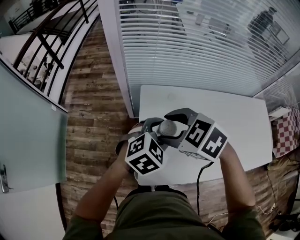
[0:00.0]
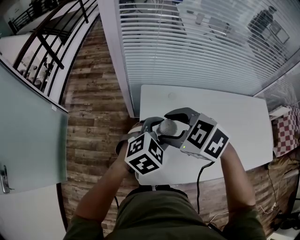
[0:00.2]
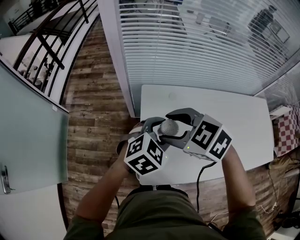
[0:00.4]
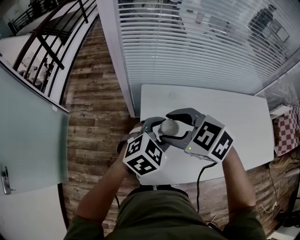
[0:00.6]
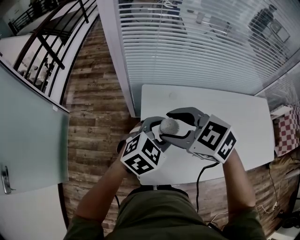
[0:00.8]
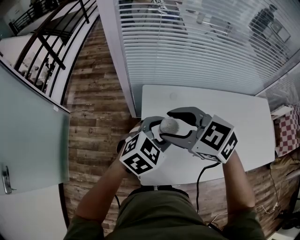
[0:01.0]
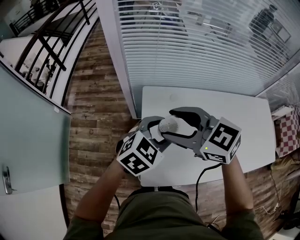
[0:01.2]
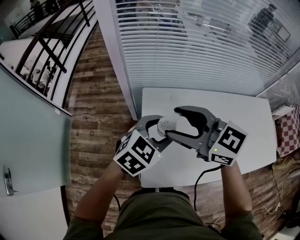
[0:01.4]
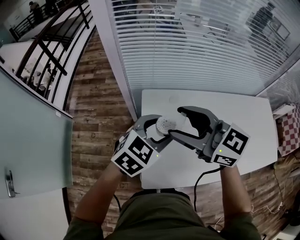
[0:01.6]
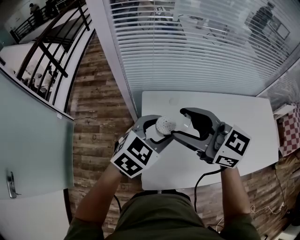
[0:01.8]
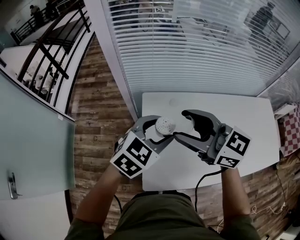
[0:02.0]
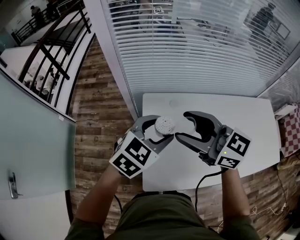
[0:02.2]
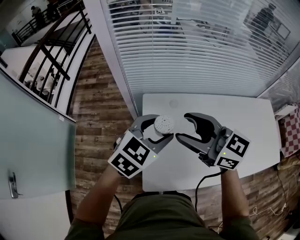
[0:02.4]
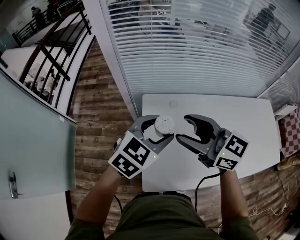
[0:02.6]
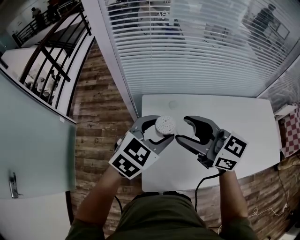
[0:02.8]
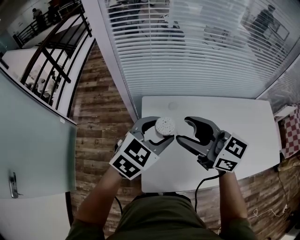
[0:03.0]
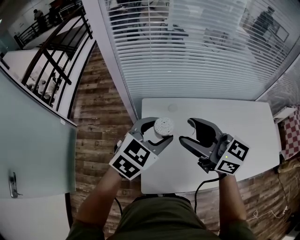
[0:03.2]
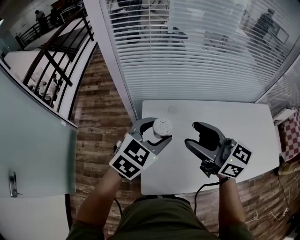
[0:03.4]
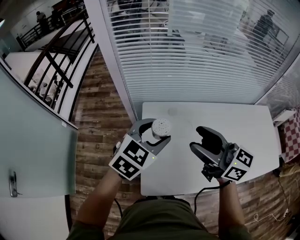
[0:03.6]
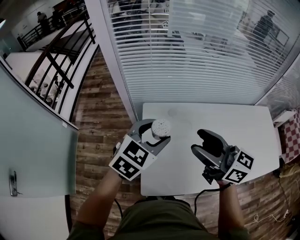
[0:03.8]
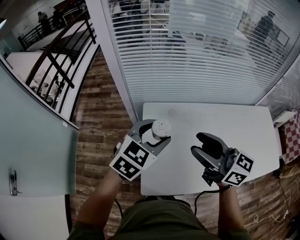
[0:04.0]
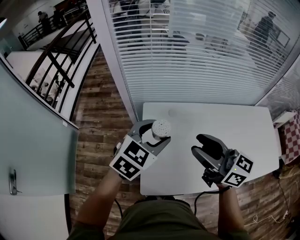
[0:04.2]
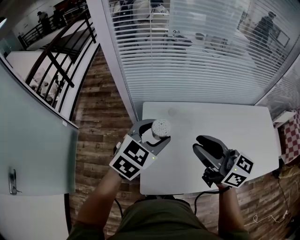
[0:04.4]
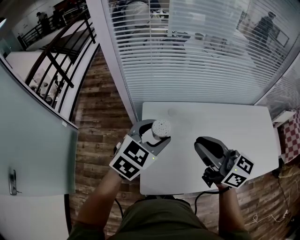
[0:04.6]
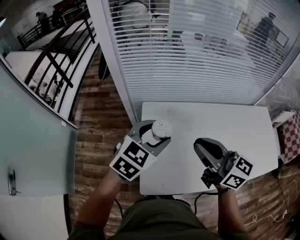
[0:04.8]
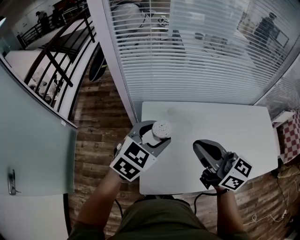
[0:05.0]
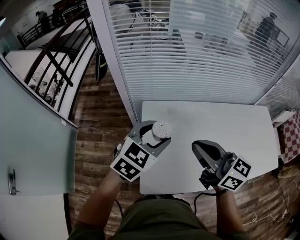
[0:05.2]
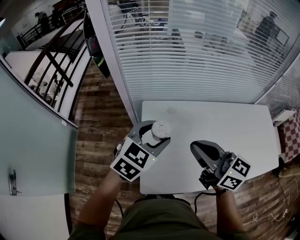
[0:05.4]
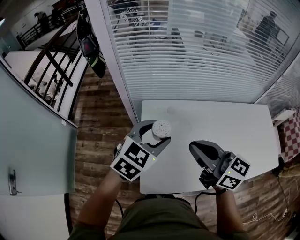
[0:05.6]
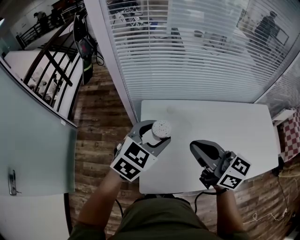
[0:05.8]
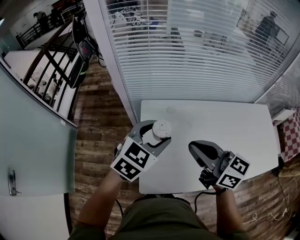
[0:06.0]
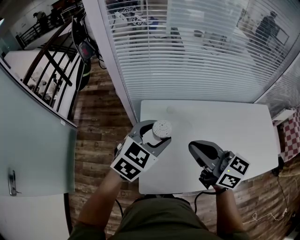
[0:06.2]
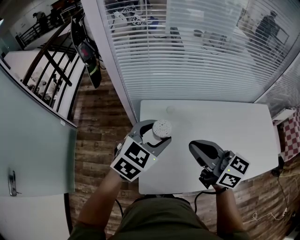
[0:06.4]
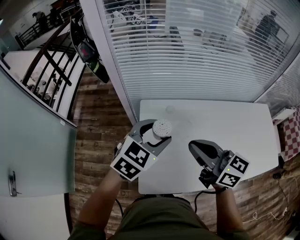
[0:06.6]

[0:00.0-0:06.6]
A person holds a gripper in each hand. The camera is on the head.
0.0 to 1.6 s: The left gripper ends up roughly 5 cm from where it was. Meanwhile the right gripper shifts about 10 cm upward, and angles its fingers upward, by approximately 40 degrees.
1.6 to 3.2 s: The right gripper heads to the right, covering roughly 5 cm.
3.2 to 5.0 s: The right gripper shifts by roughly 5 cm, and closes.
5.0 to 6.6 s: The grippers move only a little.

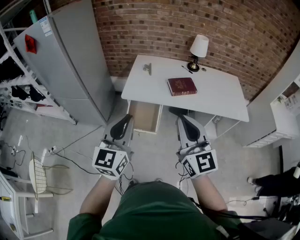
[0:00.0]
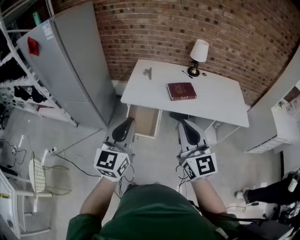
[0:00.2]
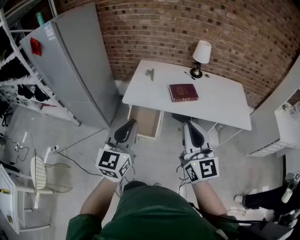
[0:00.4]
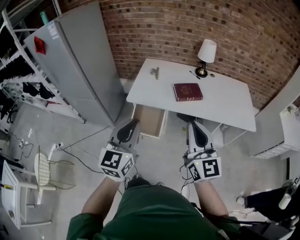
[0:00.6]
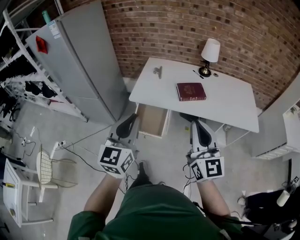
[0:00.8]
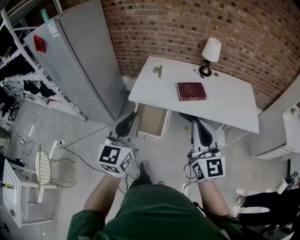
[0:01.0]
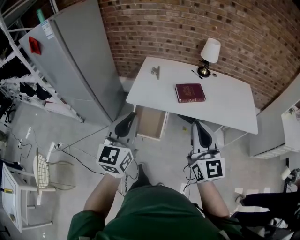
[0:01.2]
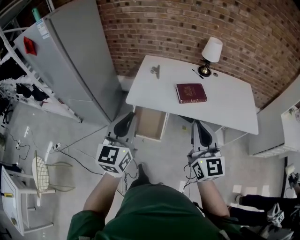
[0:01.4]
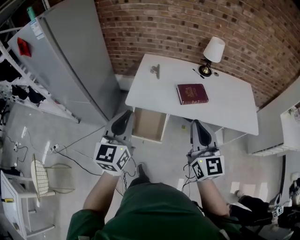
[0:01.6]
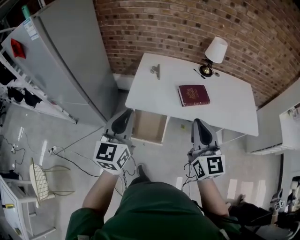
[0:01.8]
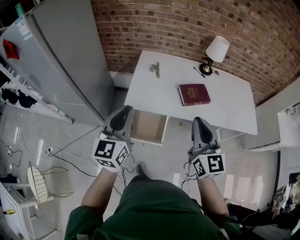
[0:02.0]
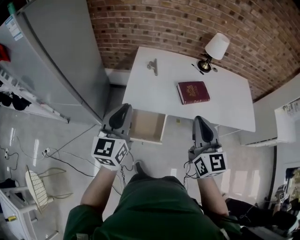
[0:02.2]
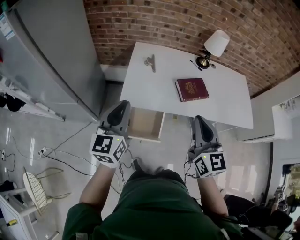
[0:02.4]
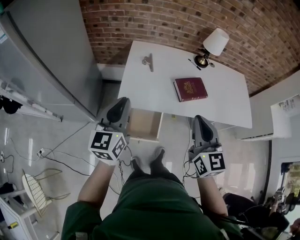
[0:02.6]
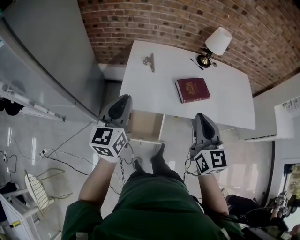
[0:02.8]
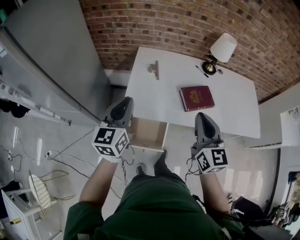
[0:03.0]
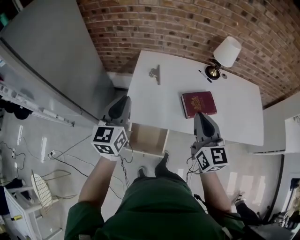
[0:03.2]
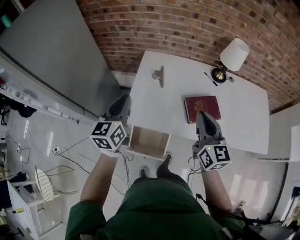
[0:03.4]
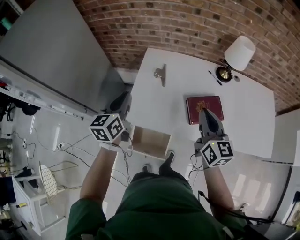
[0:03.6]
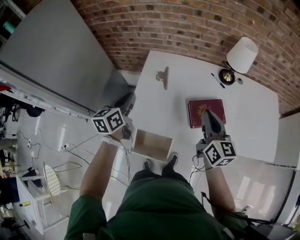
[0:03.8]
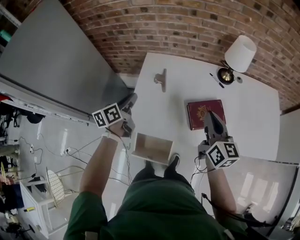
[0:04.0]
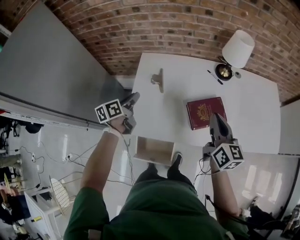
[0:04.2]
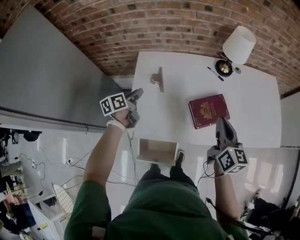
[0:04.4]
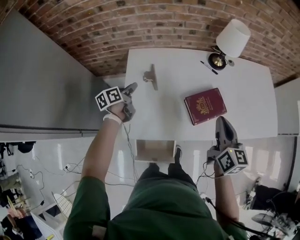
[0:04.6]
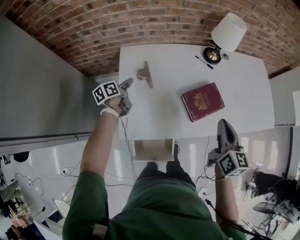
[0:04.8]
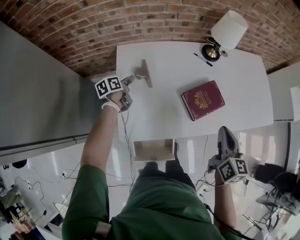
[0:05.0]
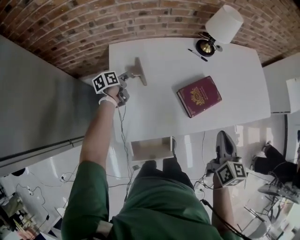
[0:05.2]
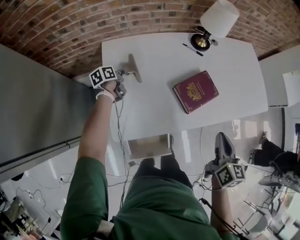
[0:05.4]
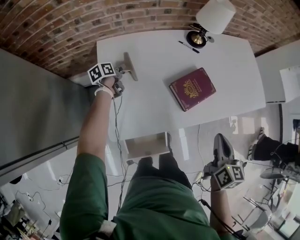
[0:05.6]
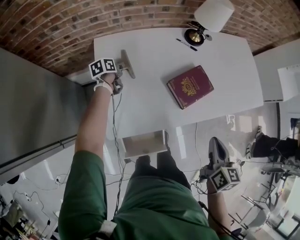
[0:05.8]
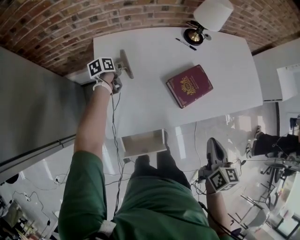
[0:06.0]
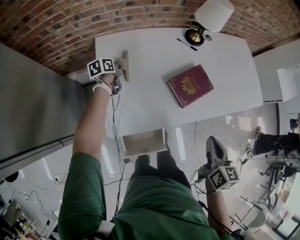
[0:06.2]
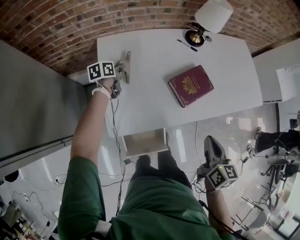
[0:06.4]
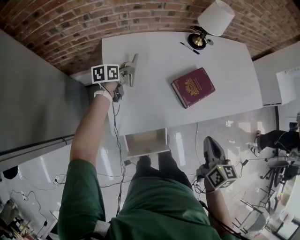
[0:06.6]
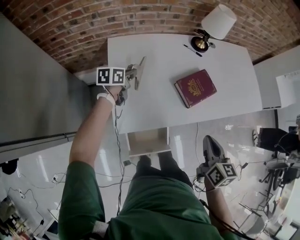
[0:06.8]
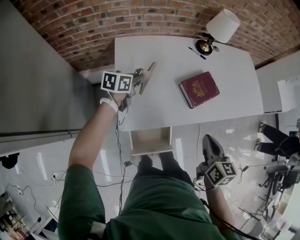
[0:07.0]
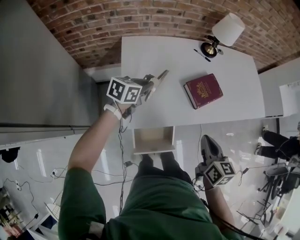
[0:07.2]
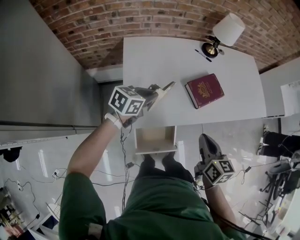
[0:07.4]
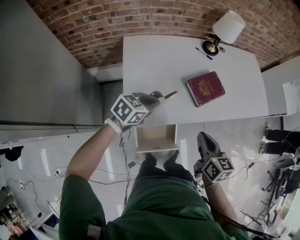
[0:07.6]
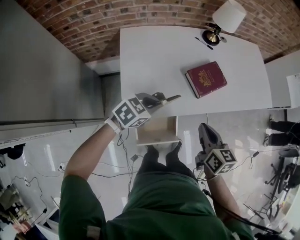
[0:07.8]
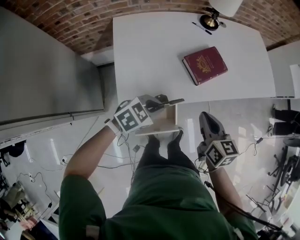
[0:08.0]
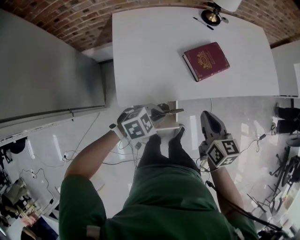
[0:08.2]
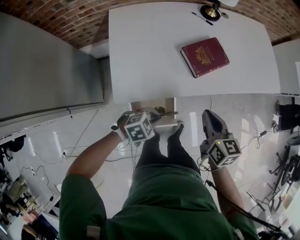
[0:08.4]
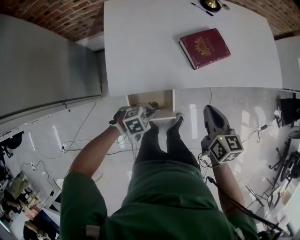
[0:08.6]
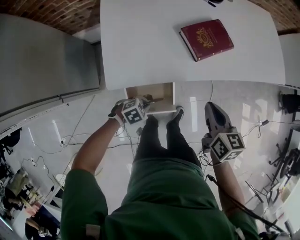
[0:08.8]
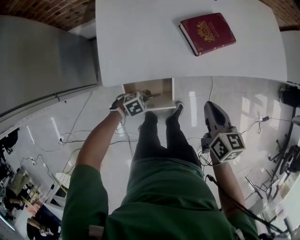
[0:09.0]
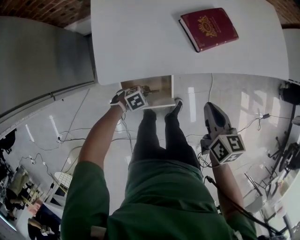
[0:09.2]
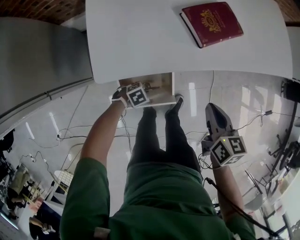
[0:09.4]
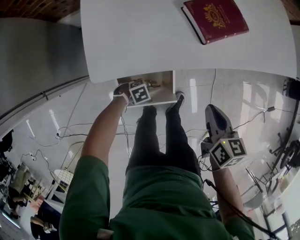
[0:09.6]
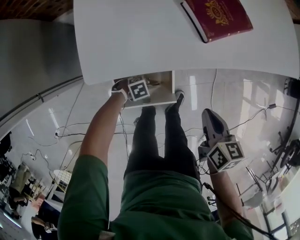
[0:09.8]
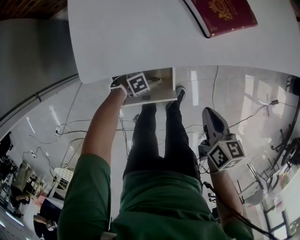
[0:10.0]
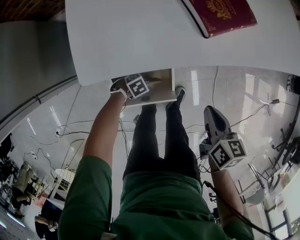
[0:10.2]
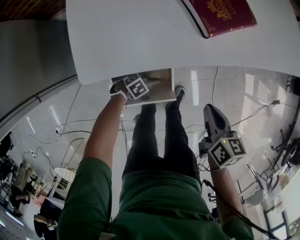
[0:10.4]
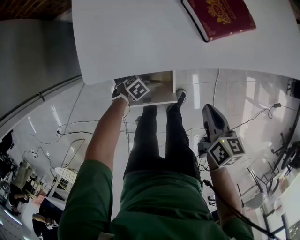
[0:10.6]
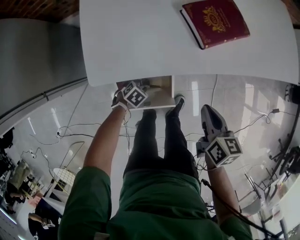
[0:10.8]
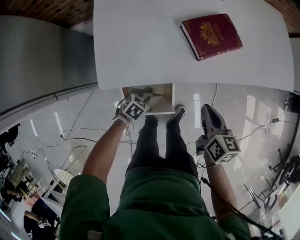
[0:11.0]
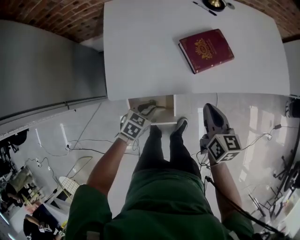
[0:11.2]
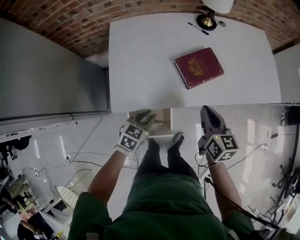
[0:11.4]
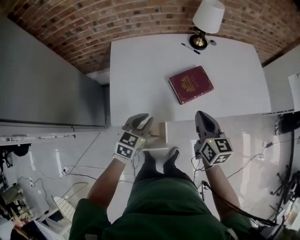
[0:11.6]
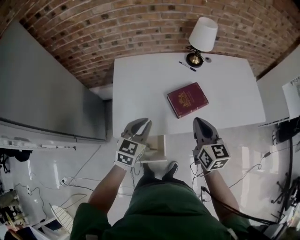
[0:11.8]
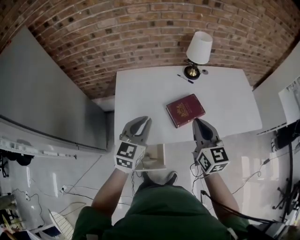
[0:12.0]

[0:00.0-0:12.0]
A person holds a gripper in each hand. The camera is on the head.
0.0 to 1.6 s: Both grippers travel together forward, some 15 cm.
1.6 to 3.0 s: The two grippers go some 20 cm forward.
3.0 to 4.4 s: The left gripper goes some 35 cm forward and downward, and rotates some 50 degrees; the right gripper travels forward, to the right and downward by some 25 cm, and turns by approximately 30 degrees.
4.4 to 6.0 s: The right gripper is displaced backward and downward by some 15 cm, and rotates approximately 30 degrees, while the left gripper goes approximately 20 cm downward and forward, and swivels some 20 degrees.
6.0 to 7.6 s: The left gripper goes some 30 cm backward, upward and to the right, and twists about 50 degrees clockwise, seen from behind; the right gripper travels to the left and backward by about 10 cm.
7.6 to 9.0 s: The left gripper shifts roughly 35 cm downward, backward and to the right, and changes its angle by some 40 degrees; the right gripper heads downward and to the right, covering roughly 15 cm.
9.0 to 10.4 s: Both grippers travel together downward, roughly 15 cm.
10.4 to 12.0 s: The left gripper travels upward by some 60 cm, and tips its fingers upward by approximately 60 degrees; the right gripper is displaced upward by about 35 cm, and points its fingers some 30 degrees further upward.

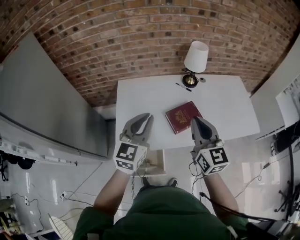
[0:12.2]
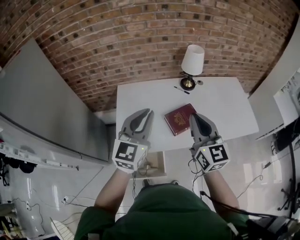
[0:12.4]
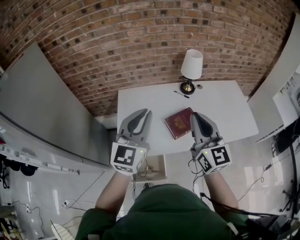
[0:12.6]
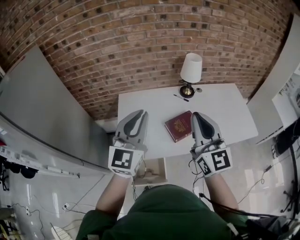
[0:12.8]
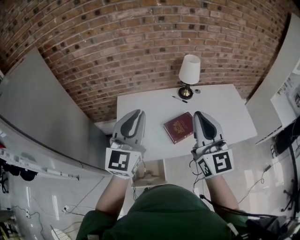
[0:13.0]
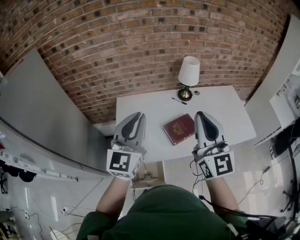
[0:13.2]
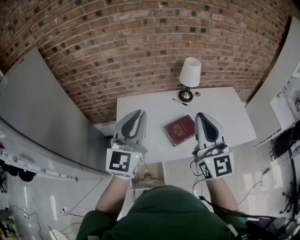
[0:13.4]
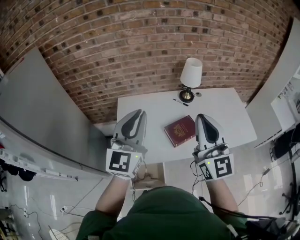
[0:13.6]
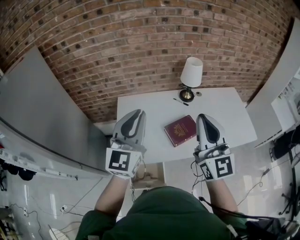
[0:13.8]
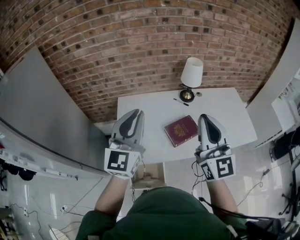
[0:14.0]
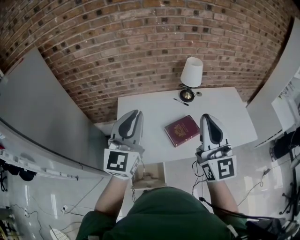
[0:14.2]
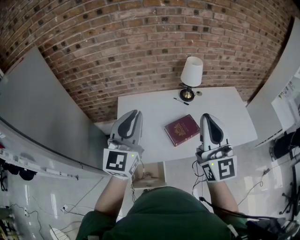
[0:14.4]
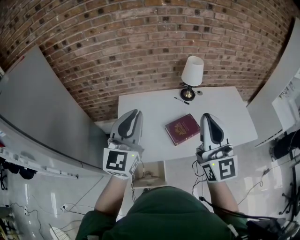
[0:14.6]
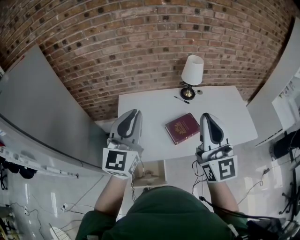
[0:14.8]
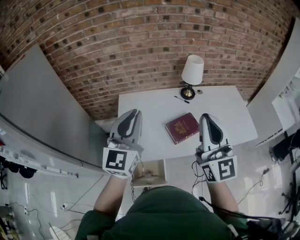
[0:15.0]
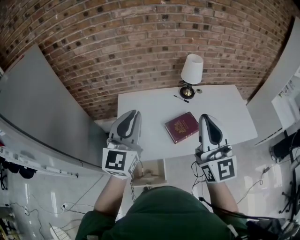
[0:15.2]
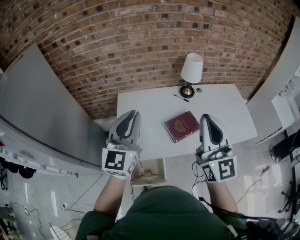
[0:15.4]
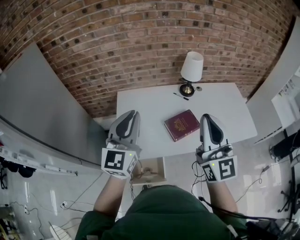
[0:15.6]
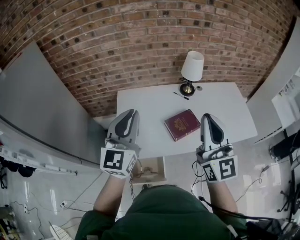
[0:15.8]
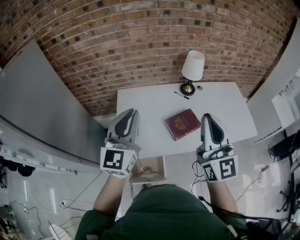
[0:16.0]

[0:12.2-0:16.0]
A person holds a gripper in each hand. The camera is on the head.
12.2 to 13.4 s: The grippers both shift upward by some 15 cm. The right gripper changes its angle by some 20 degrees.
13.4 to 16.0 s: The grippers make only small movements.

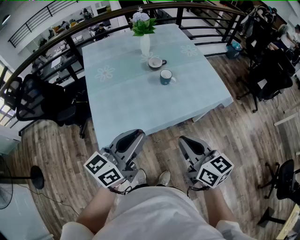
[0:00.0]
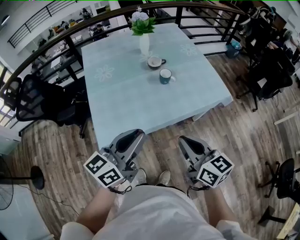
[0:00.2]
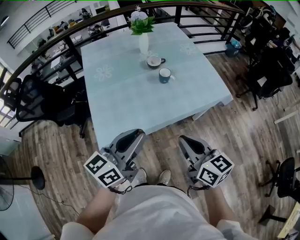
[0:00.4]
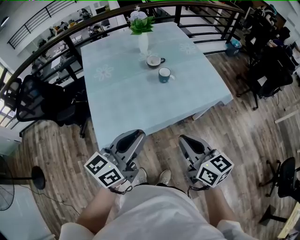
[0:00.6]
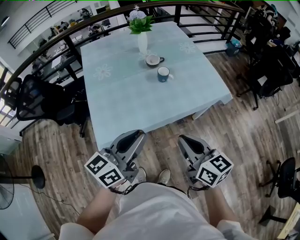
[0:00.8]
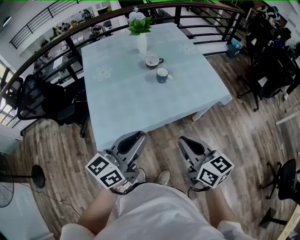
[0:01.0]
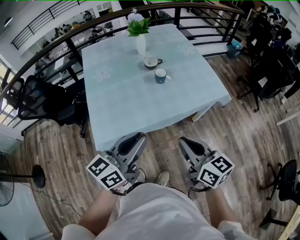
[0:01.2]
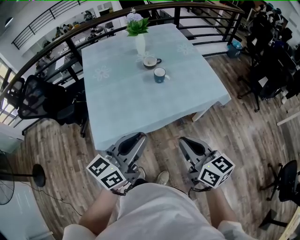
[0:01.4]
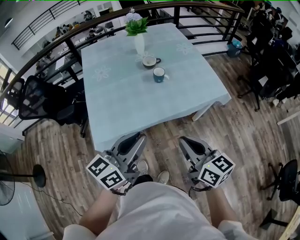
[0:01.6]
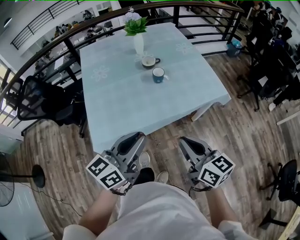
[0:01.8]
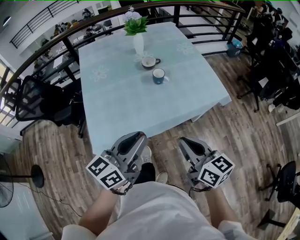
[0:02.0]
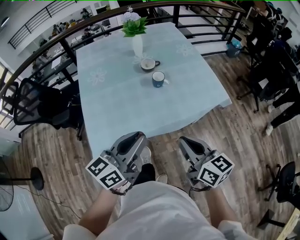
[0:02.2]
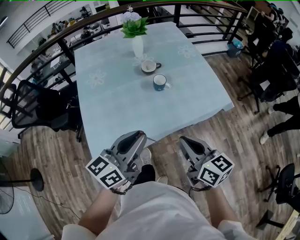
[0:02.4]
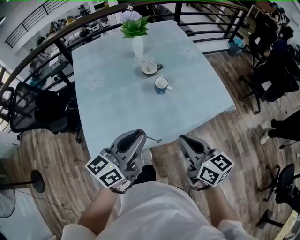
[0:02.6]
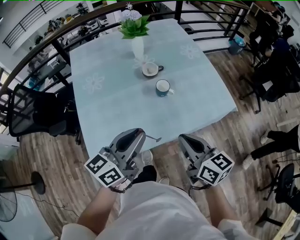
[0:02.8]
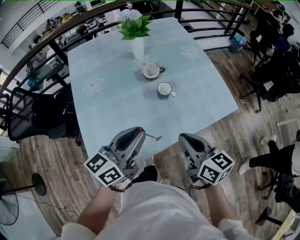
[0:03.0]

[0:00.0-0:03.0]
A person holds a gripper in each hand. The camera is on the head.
0.0 to 1.6 s: The grippers both shift to the right by some 5 cm.
1.6 to 3.0 s: The two grippers go roughly 20 cm forward.
